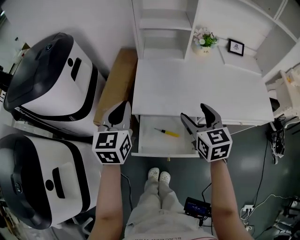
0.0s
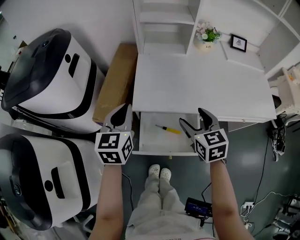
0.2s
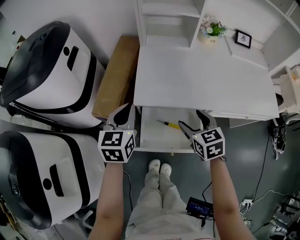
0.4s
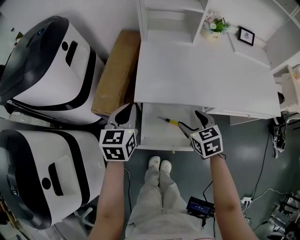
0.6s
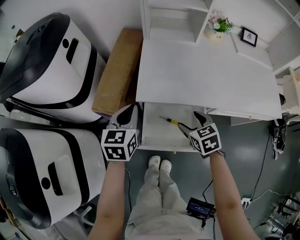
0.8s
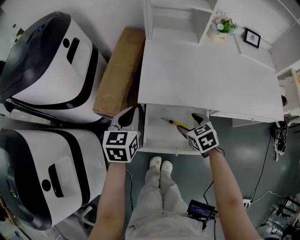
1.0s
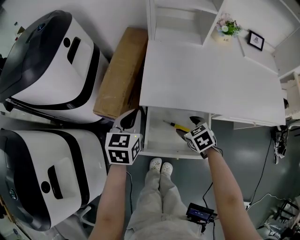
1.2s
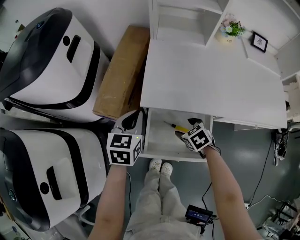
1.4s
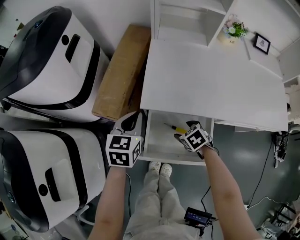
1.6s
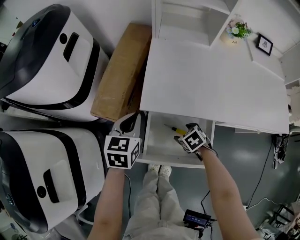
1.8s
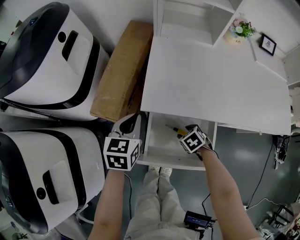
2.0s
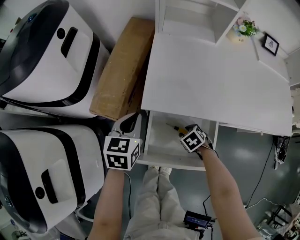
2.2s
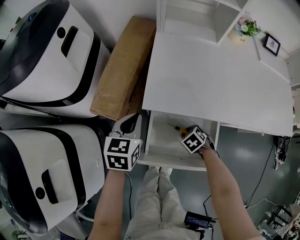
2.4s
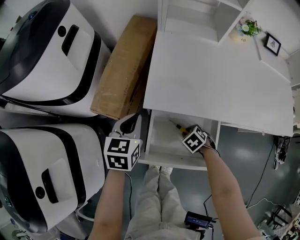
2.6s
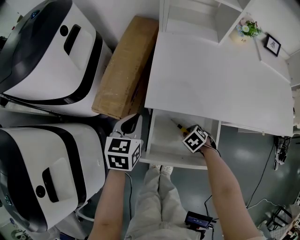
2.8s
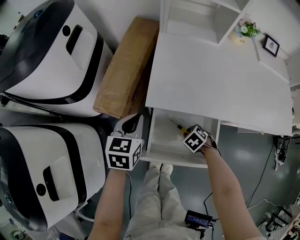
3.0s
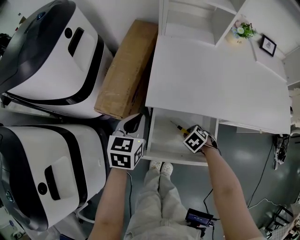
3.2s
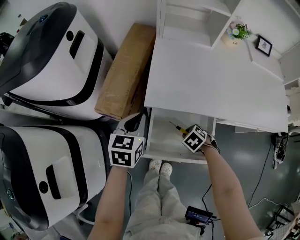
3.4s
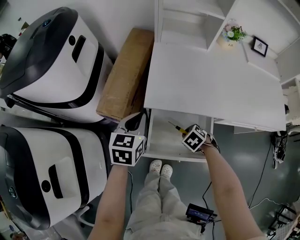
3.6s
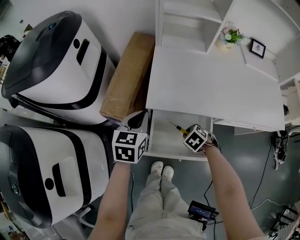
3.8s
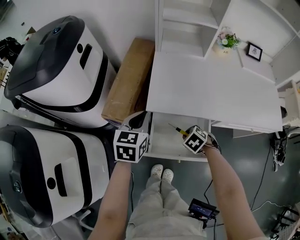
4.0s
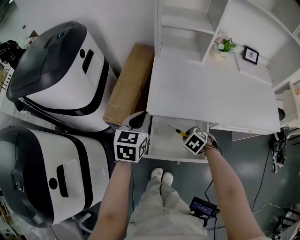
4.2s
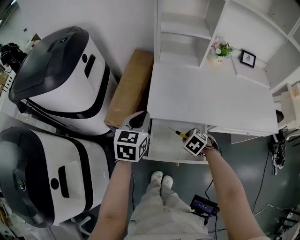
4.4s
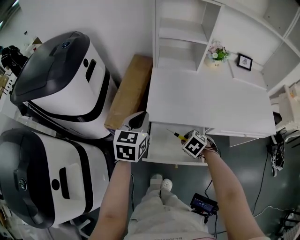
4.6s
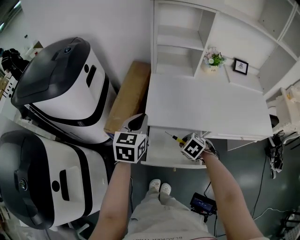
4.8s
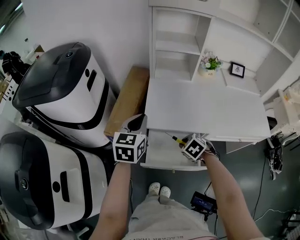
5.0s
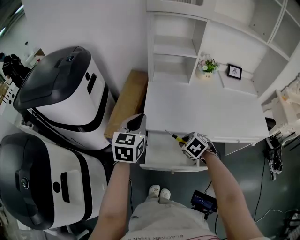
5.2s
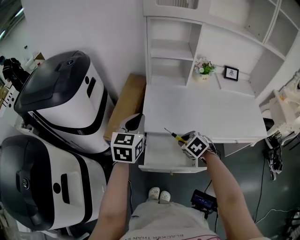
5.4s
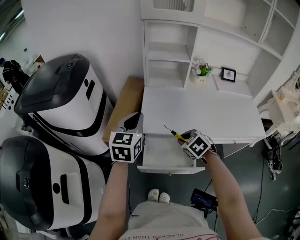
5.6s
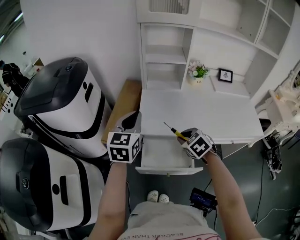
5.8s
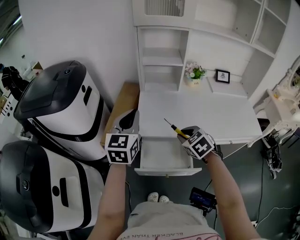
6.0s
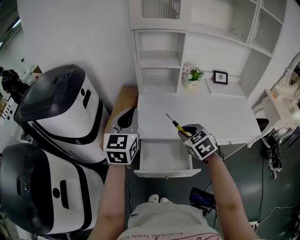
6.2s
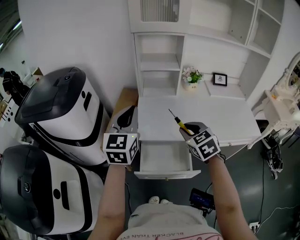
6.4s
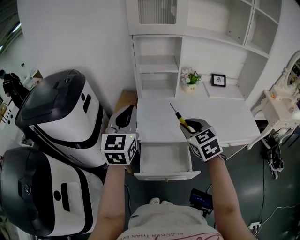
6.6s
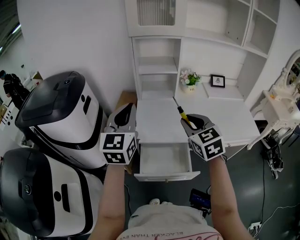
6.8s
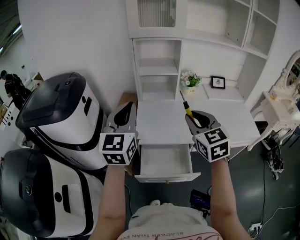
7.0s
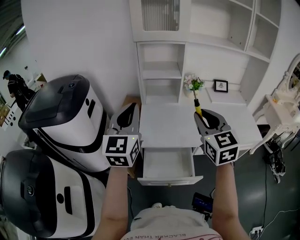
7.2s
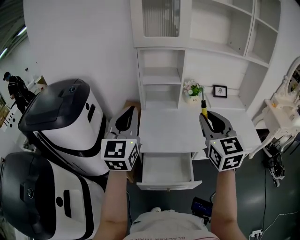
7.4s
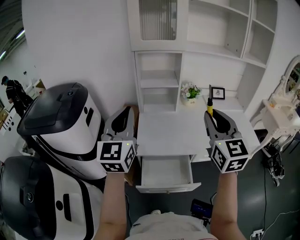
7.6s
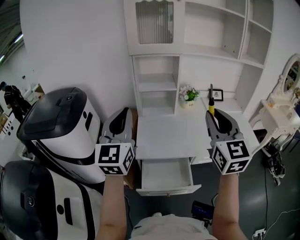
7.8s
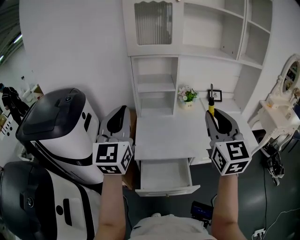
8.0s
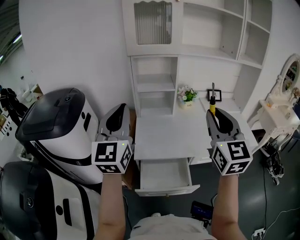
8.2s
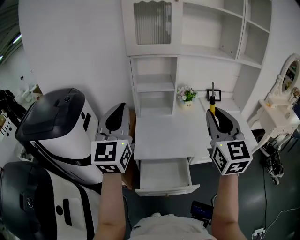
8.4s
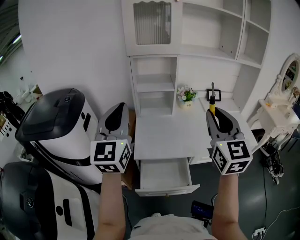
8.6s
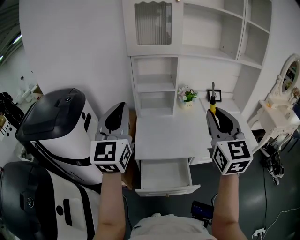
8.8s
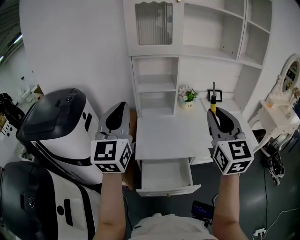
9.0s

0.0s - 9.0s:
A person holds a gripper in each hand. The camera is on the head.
0.0s - 1.6s: The left gripper shifts approximately 20 cm downward, while the right gripper heads downward, covering some 30 cm, and points its fingers some 40 degrees further downward.
1.6s - 3.0s: The right gripper heads downward, covering about 5 cm, and closes.
3.0s - 4.4s: Both grippers travel together upward, some 15 cm.
4.4s - 6.0s: Both grippers travel together upward, about 20 cm. The right gripper swivels roughly 30 degrees, while the left gripper turns by approximately 20 degrees.
6.0s - 7.6s: The right gripper shifts roughly 30 cm upward, and points its fingers roughly 50 degrees further upward, while the left gripper goes approximately 15 cm upward.
7.6s - 9.0s: The grippers make only small movements.

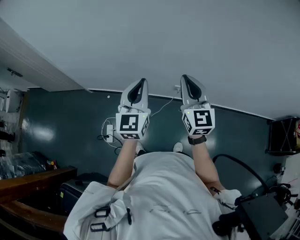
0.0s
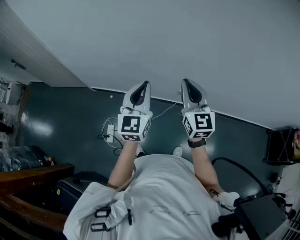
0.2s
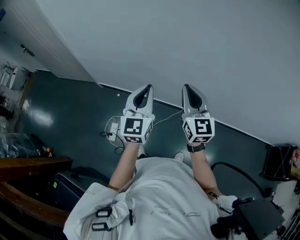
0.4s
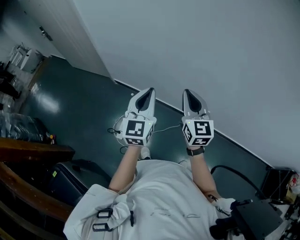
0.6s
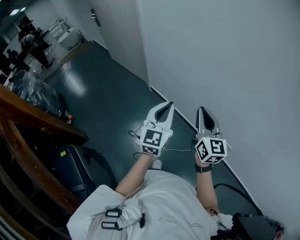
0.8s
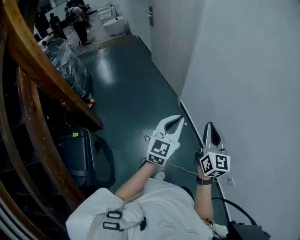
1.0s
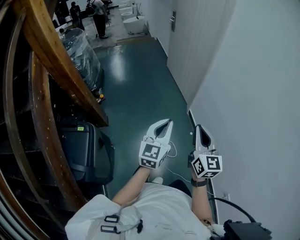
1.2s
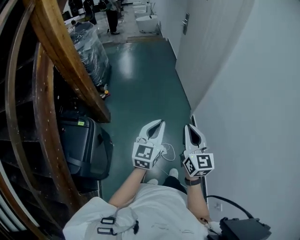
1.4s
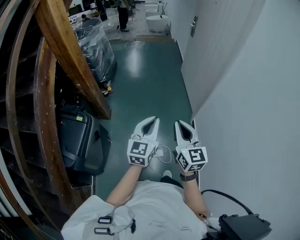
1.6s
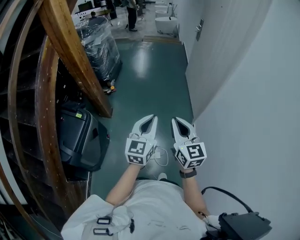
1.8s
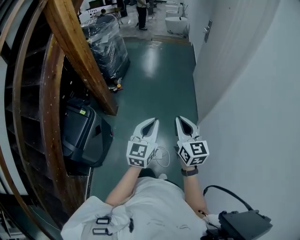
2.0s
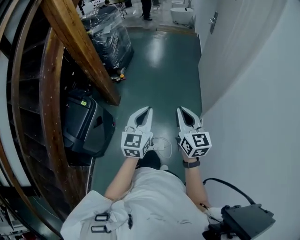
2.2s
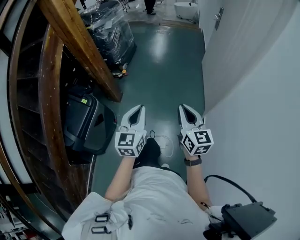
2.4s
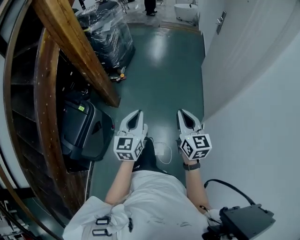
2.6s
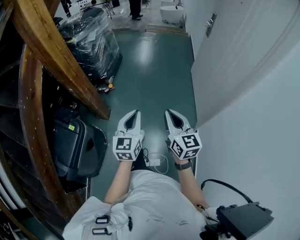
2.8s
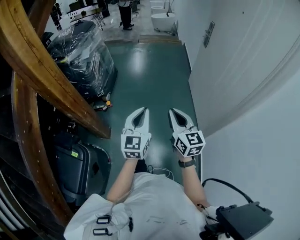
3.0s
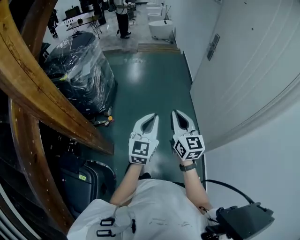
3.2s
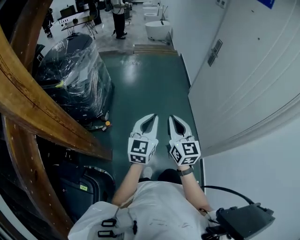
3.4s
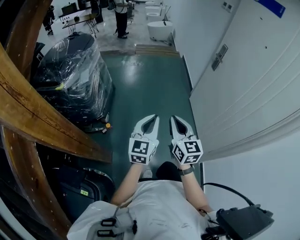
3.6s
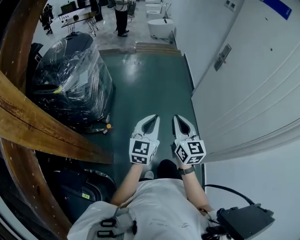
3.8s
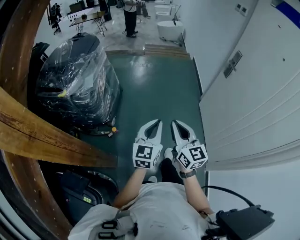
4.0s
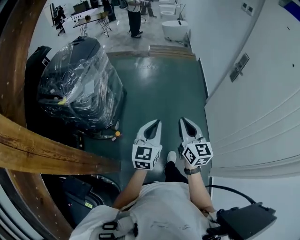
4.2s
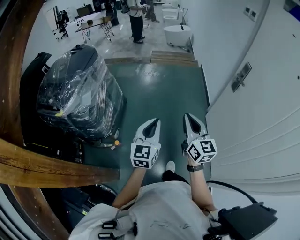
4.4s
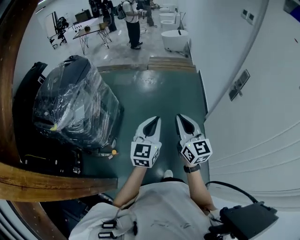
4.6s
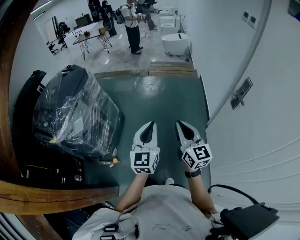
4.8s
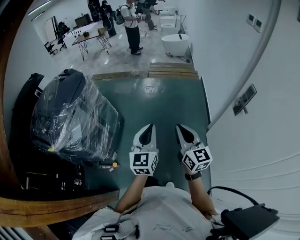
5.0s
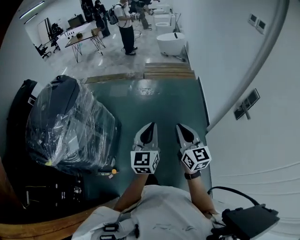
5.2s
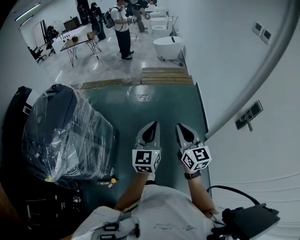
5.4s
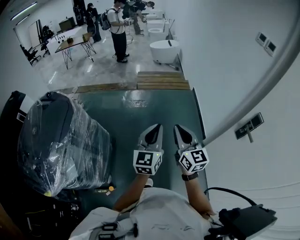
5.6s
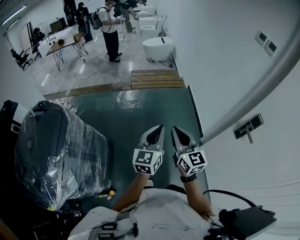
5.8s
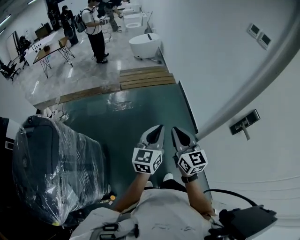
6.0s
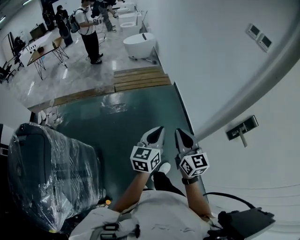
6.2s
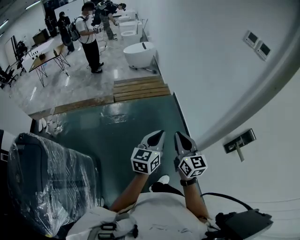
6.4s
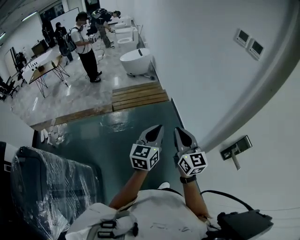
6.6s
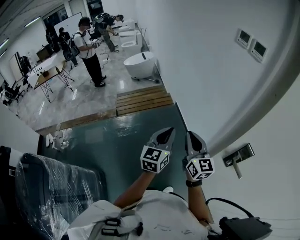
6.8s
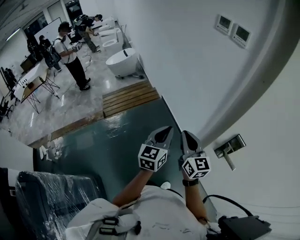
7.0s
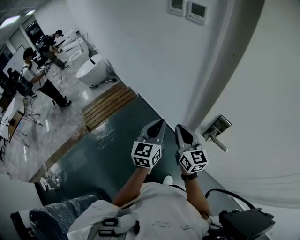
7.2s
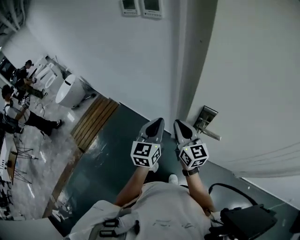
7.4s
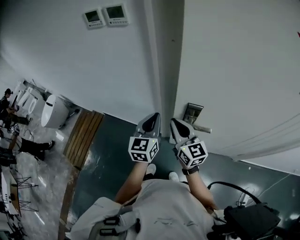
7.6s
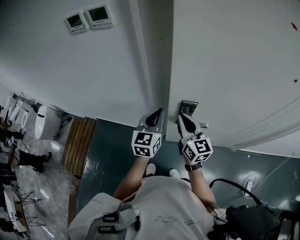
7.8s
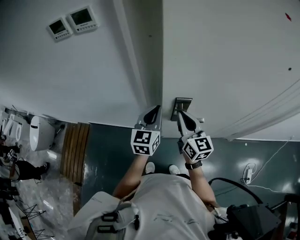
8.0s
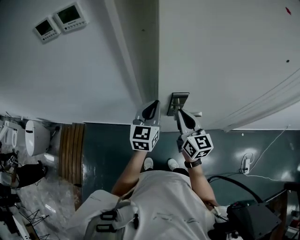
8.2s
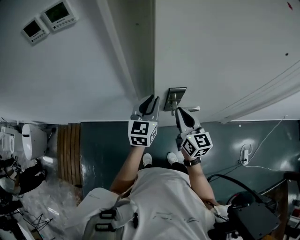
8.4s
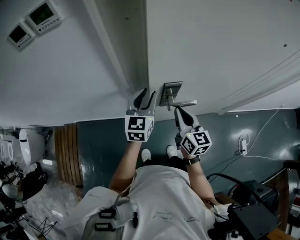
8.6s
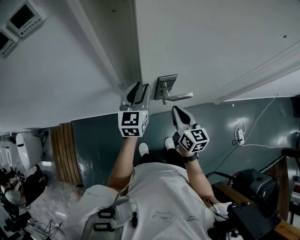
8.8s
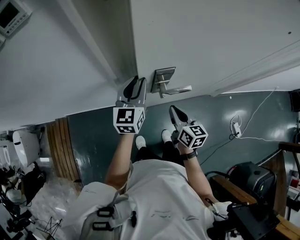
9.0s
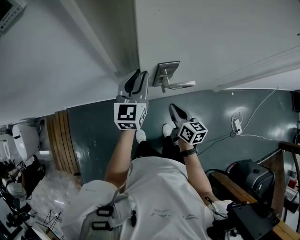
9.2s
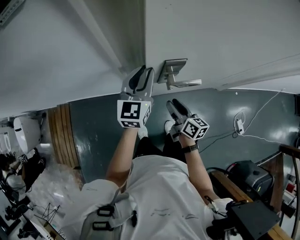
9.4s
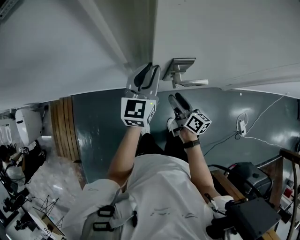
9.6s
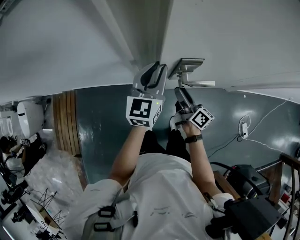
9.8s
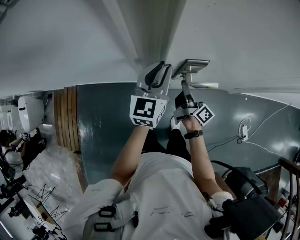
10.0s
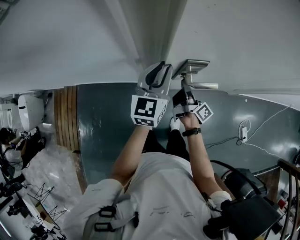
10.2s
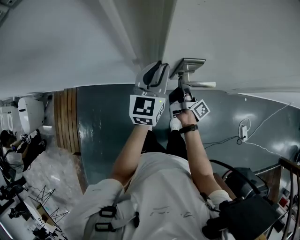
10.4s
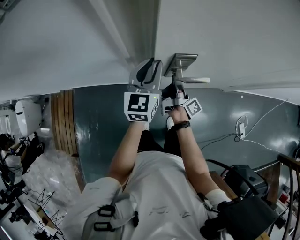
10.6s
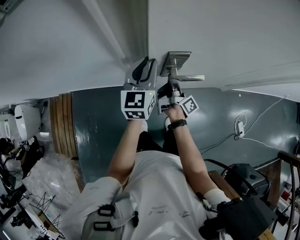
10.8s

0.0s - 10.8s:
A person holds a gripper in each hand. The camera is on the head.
0.0s - 1.6s: The pair of grippers is taken roughly 60 cm. The left gripper changes its angle by roughly 70 degrees. Meanwhile the right gripper rotates some 80 degrees.
1.6s - 3.0s: The grippers both shift forward by approximately 40 cm.
3.0s - 4.6s: The pair of grippers is taken forward, roughly 50 cm.
4.6s - 6.2s: The two grippers travel together, forward, about 40 cm. The left gripper changes its angle by some 30 degrees. Meanwhile the right gripper rotates about 20 degrees.
6.2s - 7.8s: Both grippers are carried approximately 40 cm. The right gripper turns by roughly 60 degrees. The left gripper turns by about 60 degrees.
7.8s - 9.2s: The right gripper heads downward and to the right, covering about 20 cm, and changes its angle by roughly 40 degrees, while the left gripper heads forward, covering roughly 5 cm, and opens.
9.2s - 10.8s: The right gripper shifts some 10 cm forward, rotates around the line of its fingers by approximately 60 degrees, clockwise from behind, and opens and closes again.

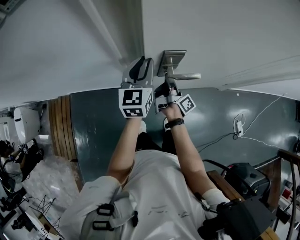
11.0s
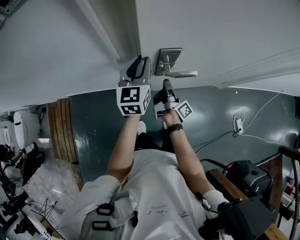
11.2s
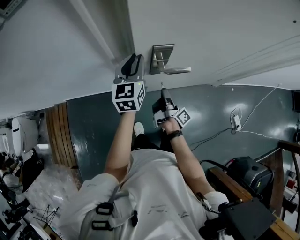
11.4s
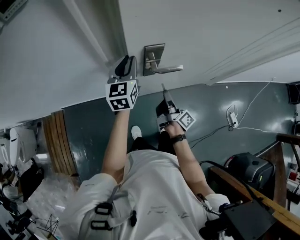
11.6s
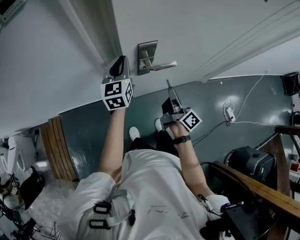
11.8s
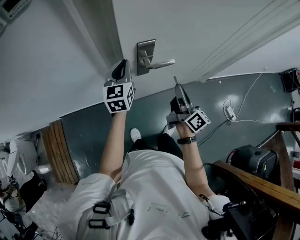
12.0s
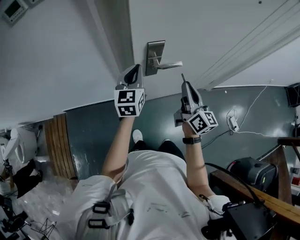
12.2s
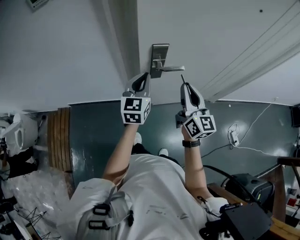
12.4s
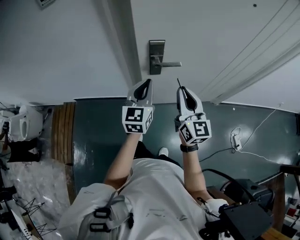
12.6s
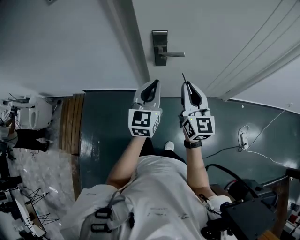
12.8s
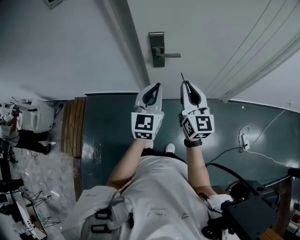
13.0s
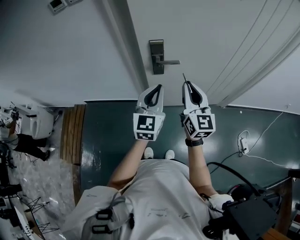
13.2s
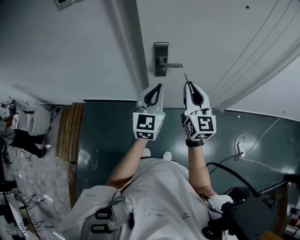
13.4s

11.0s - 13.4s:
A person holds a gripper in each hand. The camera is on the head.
11.0s - 12.2s: The left gripper moves backward, approximately 5 cm, and closes its fingers; the right gripper shifts approximately 25 cm upward, backward and to the right, and rotates around the line of its fingers by approximately 60 degrees, counterclockwise from behind.
12.2s - 13.4s: The right gripper goes approximately 10 cm upward and backward, and turns by approximately 30 degrees. Meanwhile the left gripper moves backward, upward and to the right, about 20 cm.

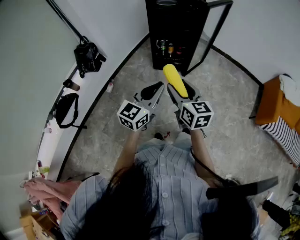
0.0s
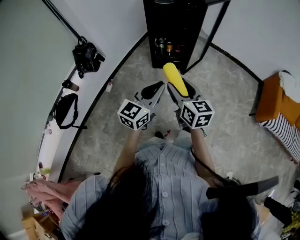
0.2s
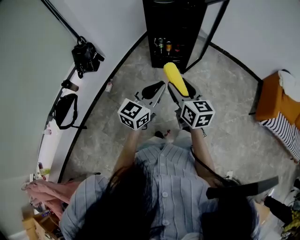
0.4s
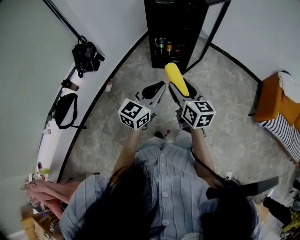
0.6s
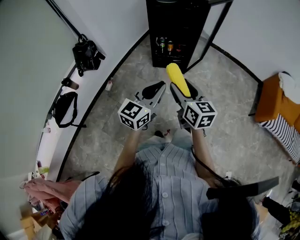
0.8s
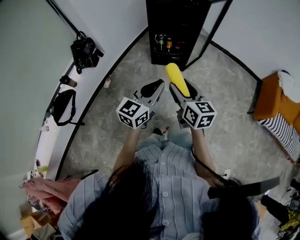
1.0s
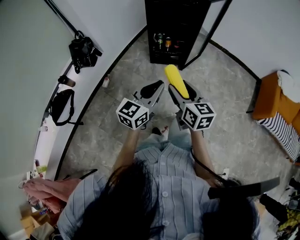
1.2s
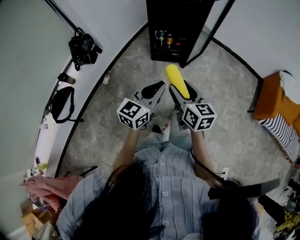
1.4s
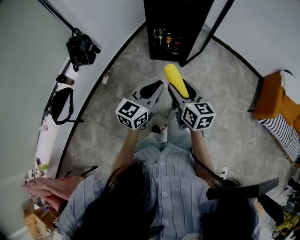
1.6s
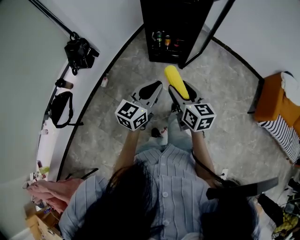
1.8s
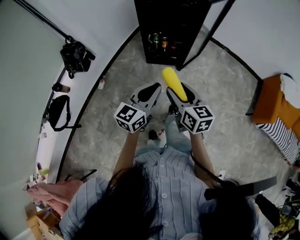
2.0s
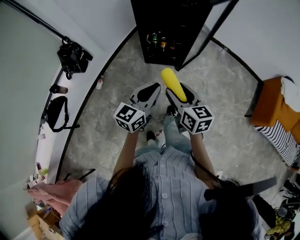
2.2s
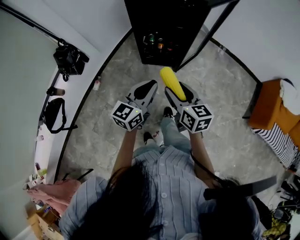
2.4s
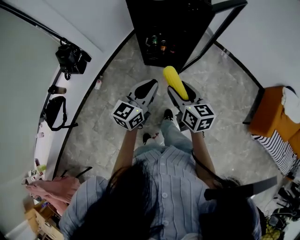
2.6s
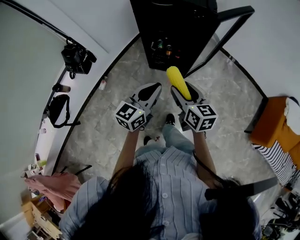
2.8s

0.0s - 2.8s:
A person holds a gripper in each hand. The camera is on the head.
0.0s - 1.4s: The grippers make only small movements.
1.4s - 2.8s: Both grippers move forward, about 25 cm.
